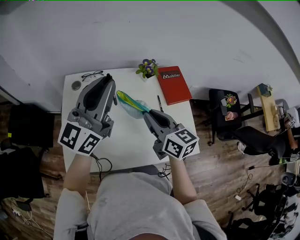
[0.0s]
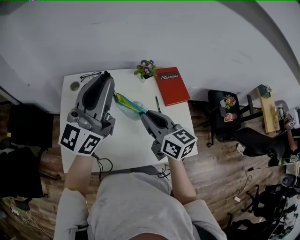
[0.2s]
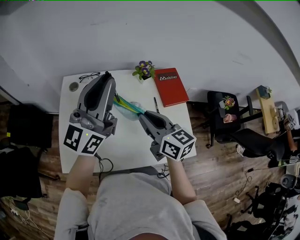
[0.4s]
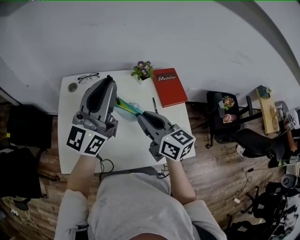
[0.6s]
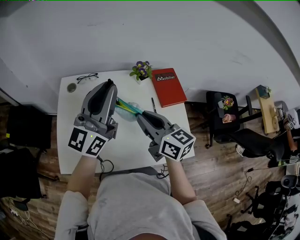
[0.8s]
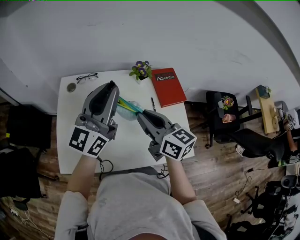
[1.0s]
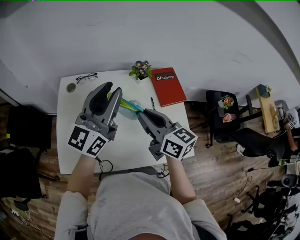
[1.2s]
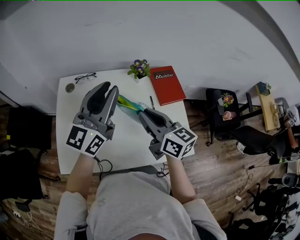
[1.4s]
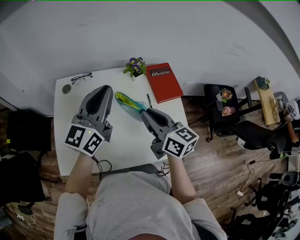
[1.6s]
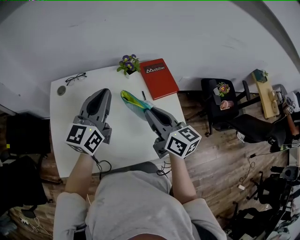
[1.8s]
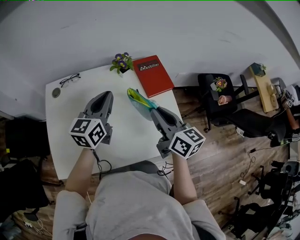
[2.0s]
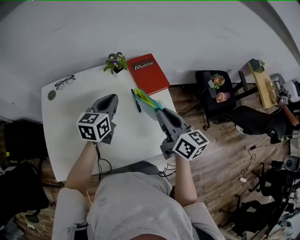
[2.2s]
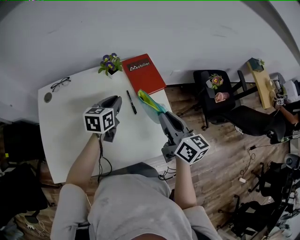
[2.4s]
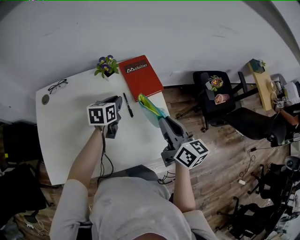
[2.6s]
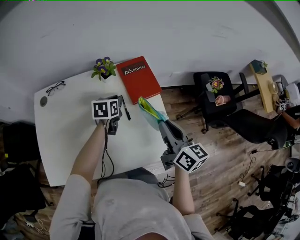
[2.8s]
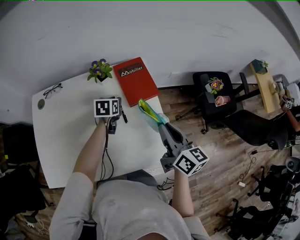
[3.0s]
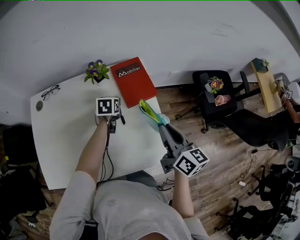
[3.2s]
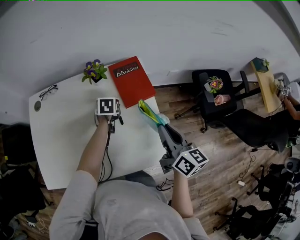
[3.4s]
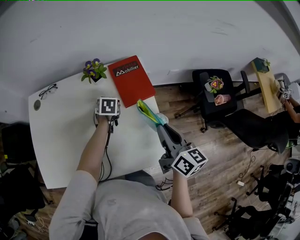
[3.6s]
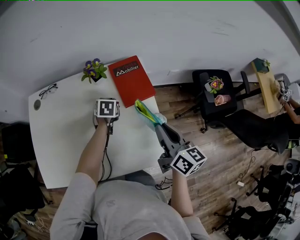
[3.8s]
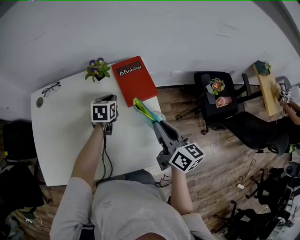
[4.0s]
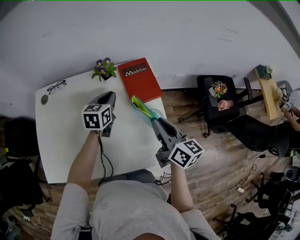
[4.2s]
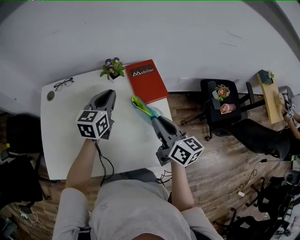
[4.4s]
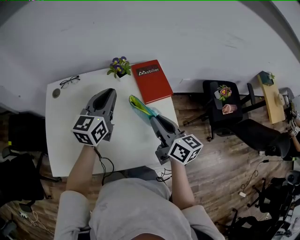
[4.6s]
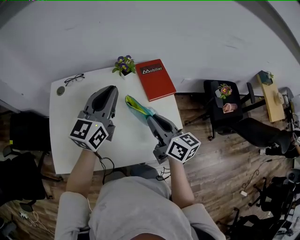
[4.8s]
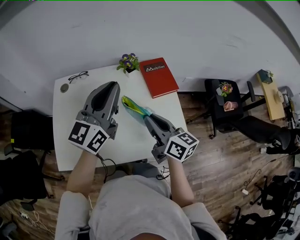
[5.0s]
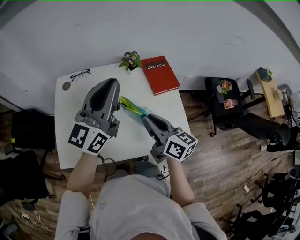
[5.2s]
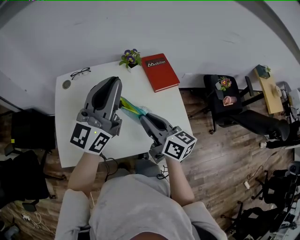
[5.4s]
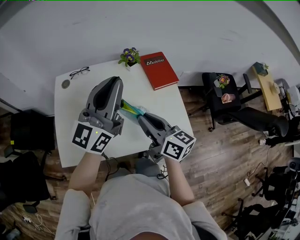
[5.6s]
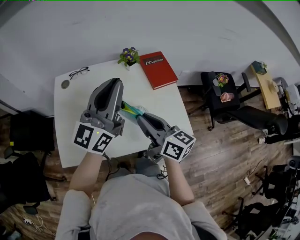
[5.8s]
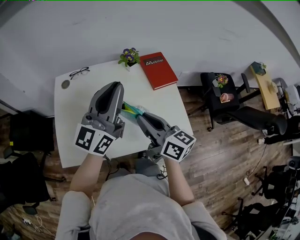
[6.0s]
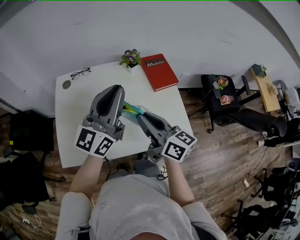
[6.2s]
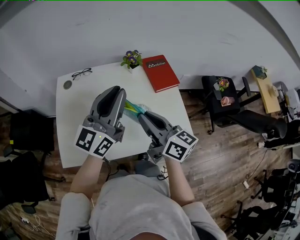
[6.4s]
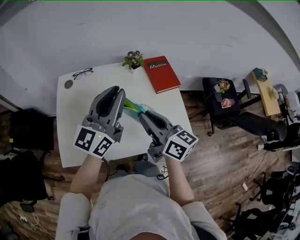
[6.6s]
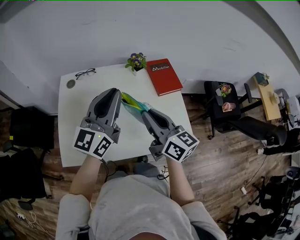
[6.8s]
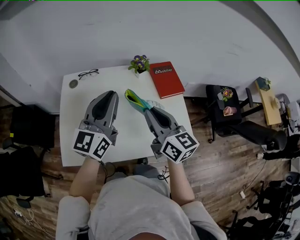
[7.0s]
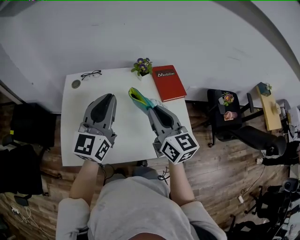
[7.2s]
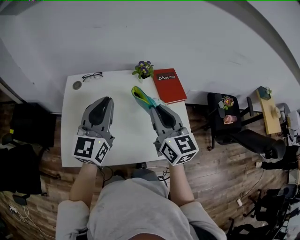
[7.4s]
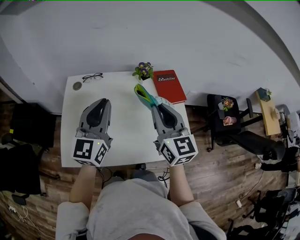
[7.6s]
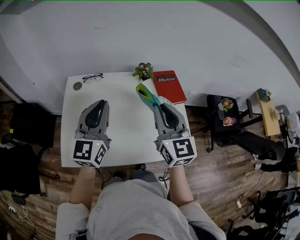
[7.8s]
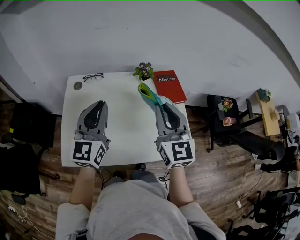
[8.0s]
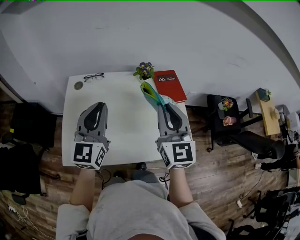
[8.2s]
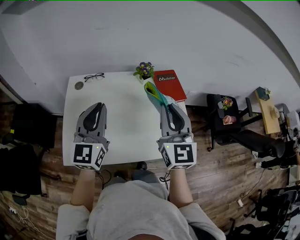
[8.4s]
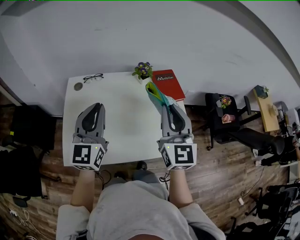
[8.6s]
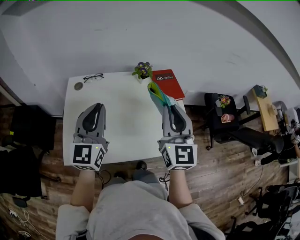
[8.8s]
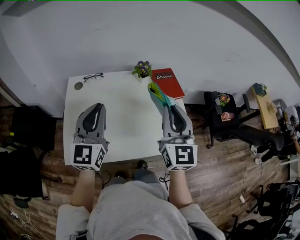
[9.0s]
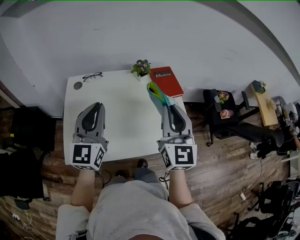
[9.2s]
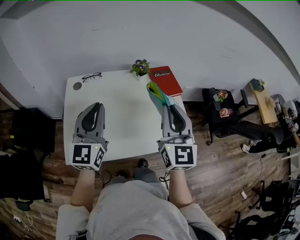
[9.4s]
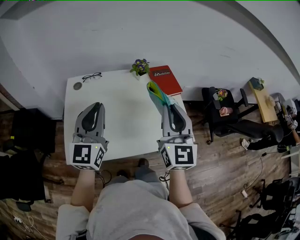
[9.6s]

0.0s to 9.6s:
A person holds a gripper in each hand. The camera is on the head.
0.0s to 1.6s: The left gripper travels downward and to the right by roughly 10 cm.
1.6s to 3.2s: The left gripper is displaced downward, to the right and forward by about 40 cm, and points its fingers some 60 degrees further downward, while the right gripper travels to the right by roughly 25 cm, and changes its angle by roughly 20 degrees.
3.2s to 4.8s: The right gripper heads to the left, covering roughly 15 cm. Meanwhile the left gripper is displaced upward and backward by approximately 35 cm, and tips its fingers upward by some 50 degrees.
4.8s to 6.4s: The left gripper heads backward and upward, covering approximately 10 cm, while the right gripper goes roughly 15 cm to the left, backward and upward.
6.4s to 8.0s: The right gripper moves upward, approximately 5 cm, and rotates around the line of its fingers by approximately 40 degrees, counterclockwise from behind. The left gripper shifts some 10 cm to the left, and changes its angle by approximately 30 degrees.
8.0s to 9.6s: The grippers both shift backward by roughly 5 cm.

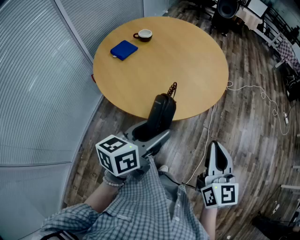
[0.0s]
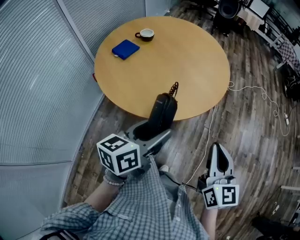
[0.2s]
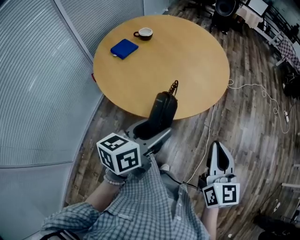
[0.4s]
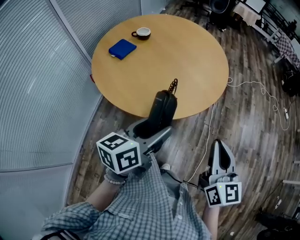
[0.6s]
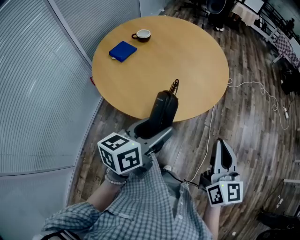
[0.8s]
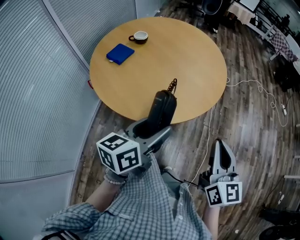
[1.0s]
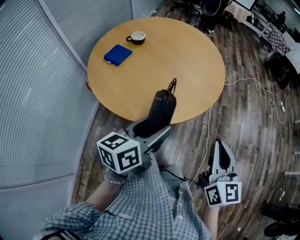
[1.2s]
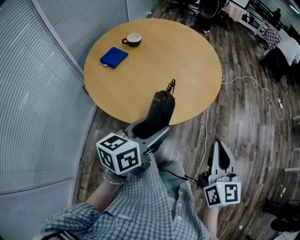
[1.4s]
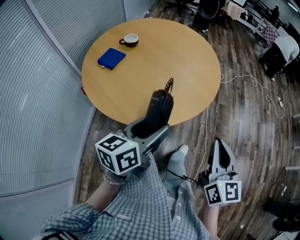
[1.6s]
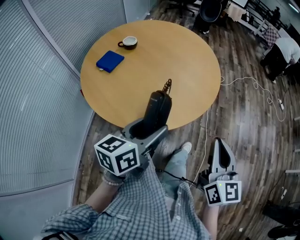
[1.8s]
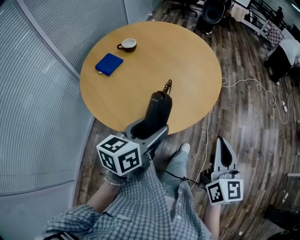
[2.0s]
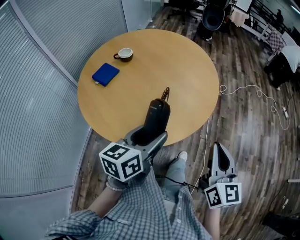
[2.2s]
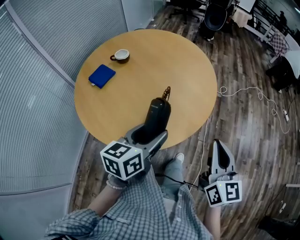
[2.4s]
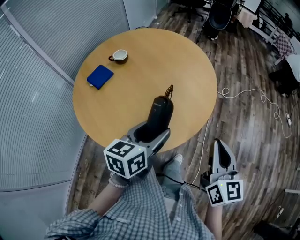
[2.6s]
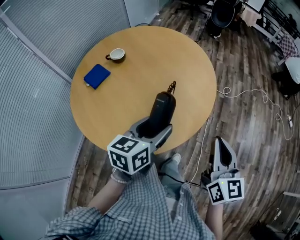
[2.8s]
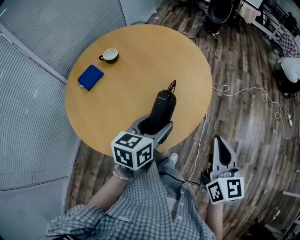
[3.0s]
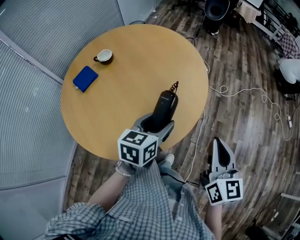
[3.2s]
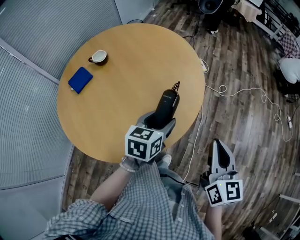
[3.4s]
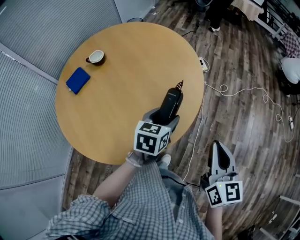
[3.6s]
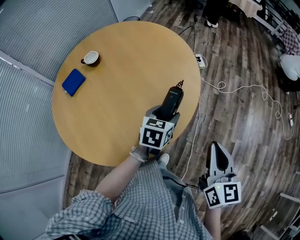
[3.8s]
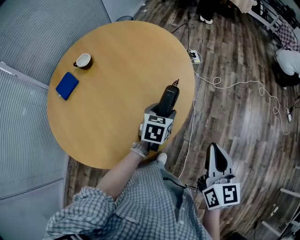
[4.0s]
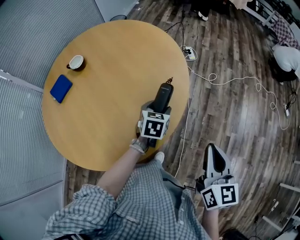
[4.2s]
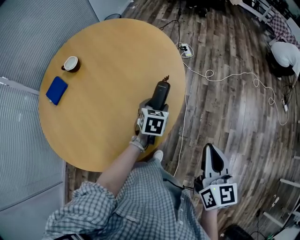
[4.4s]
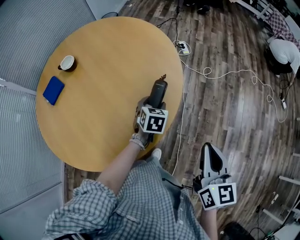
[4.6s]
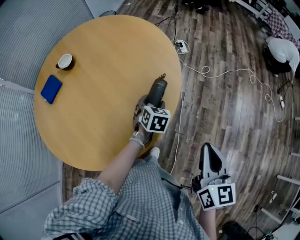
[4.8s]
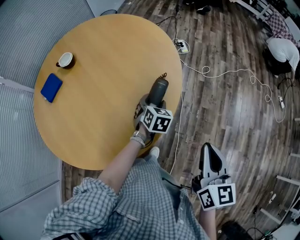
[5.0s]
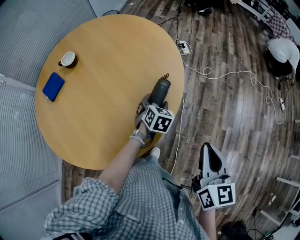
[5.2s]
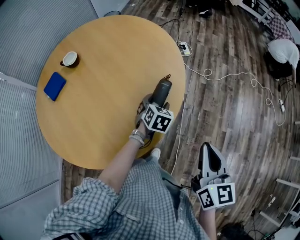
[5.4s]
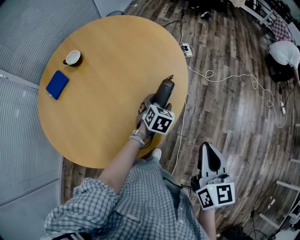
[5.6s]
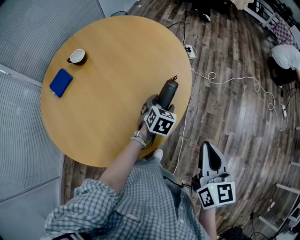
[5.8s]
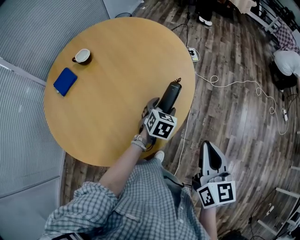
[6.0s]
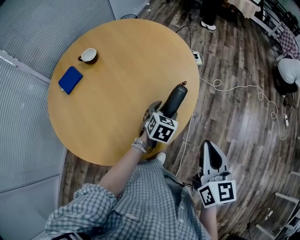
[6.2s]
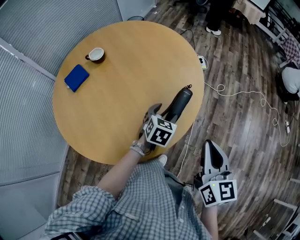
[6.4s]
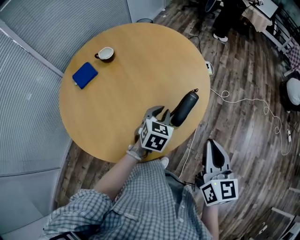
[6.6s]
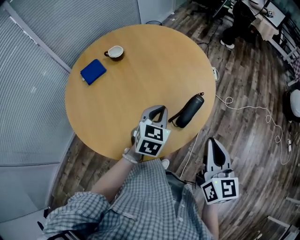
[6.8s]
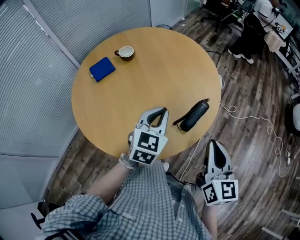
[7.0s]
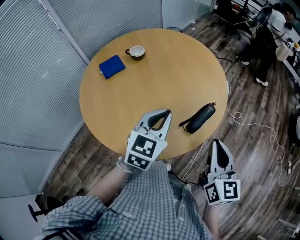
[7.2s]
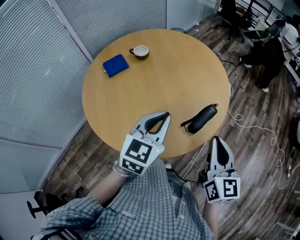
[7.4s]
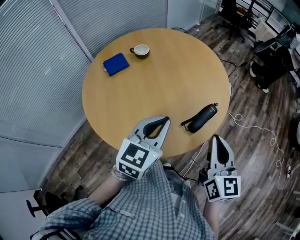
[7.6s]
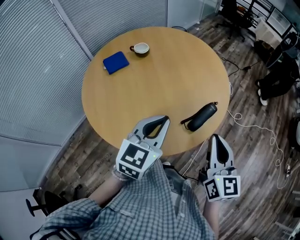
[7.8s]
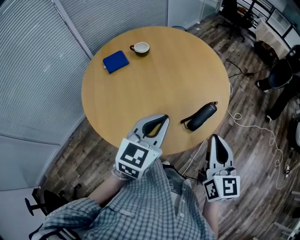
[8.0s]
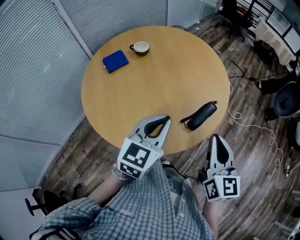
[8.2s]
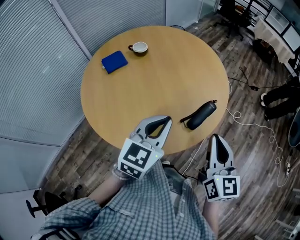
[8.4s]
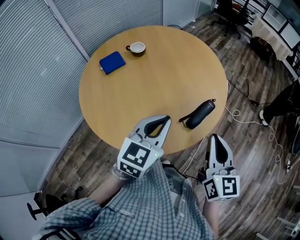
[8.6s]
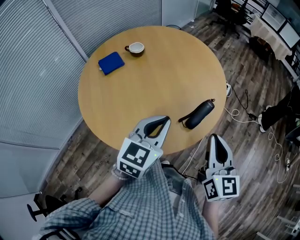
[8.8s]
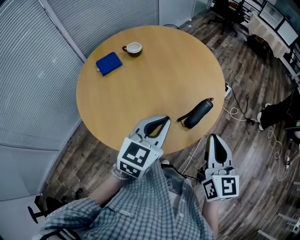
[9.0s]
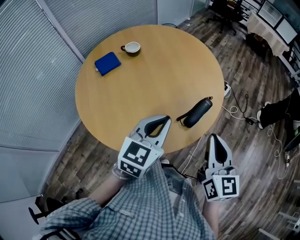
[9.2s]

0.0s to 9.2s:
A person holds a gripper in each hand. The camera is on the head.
0.0s to 1.6s: The grippers stay close to where they were, moving slightly.
1.6s to 3.0s: The two grippers go about 30 cm forward and to the right.
3.0s to 4.6s: The left gripper travels downward, forward and to the right by about 30 cm, and changes its angle by about 30 degrees. Meanwhile the right gripper is displaced to the right, forward and downward by about 15 cm.
4.6s to 6.2s: The left gripper moves about 5 cm. Meanwhile the right gripper heads to the left, covering roughly 5 cm.
6.2s to 7.6s: The left gripper heads upward, to the left and backward, covering some 30 cm, changes its angle by about 30 degrees, and closes up; the right gripper heads to the left, covering roughly 10 cm.
7.6s to 9.2s: The grippers stay close to where they were, moving slightly.

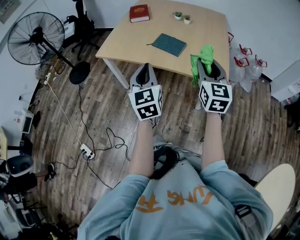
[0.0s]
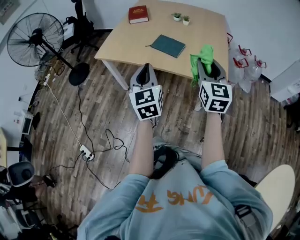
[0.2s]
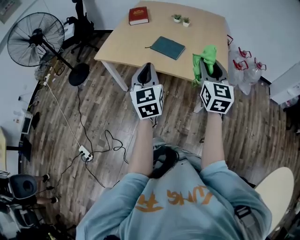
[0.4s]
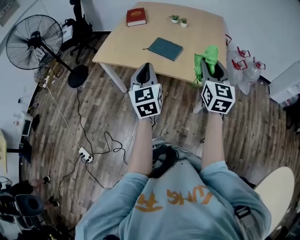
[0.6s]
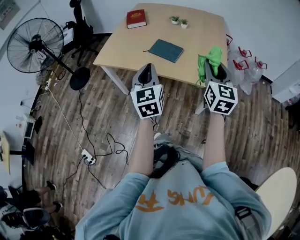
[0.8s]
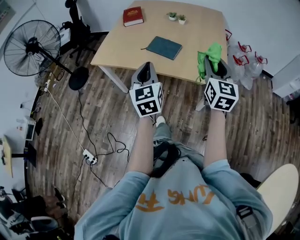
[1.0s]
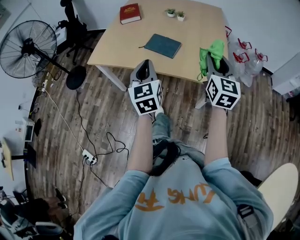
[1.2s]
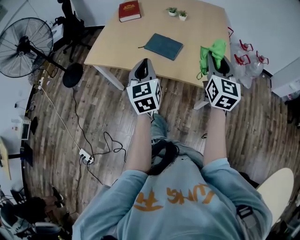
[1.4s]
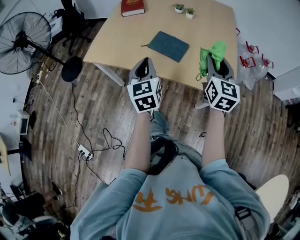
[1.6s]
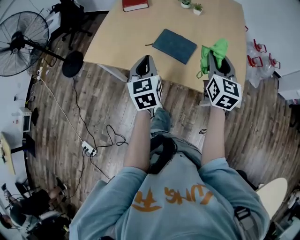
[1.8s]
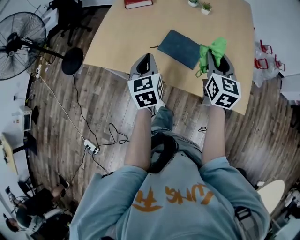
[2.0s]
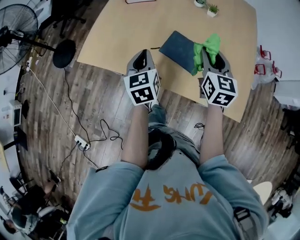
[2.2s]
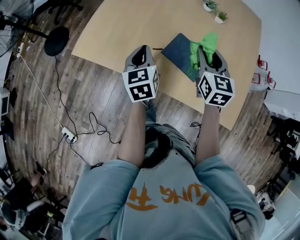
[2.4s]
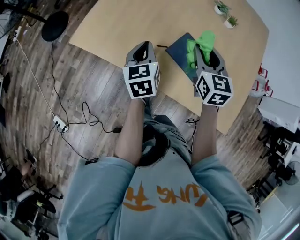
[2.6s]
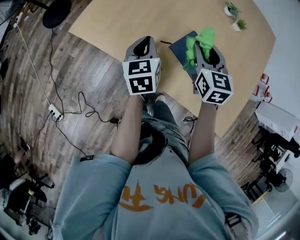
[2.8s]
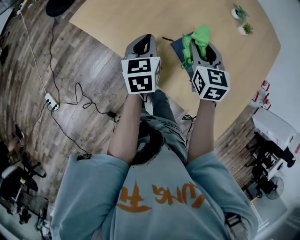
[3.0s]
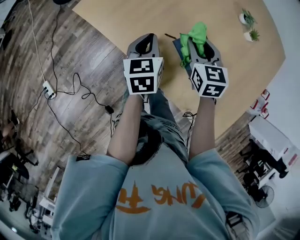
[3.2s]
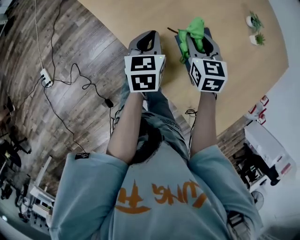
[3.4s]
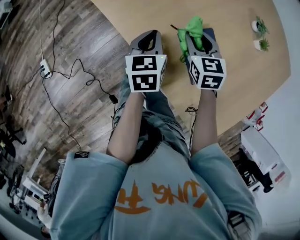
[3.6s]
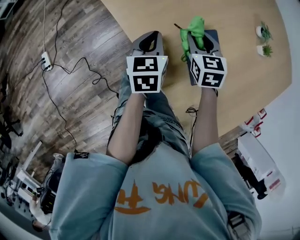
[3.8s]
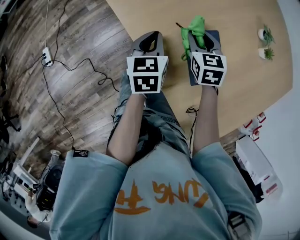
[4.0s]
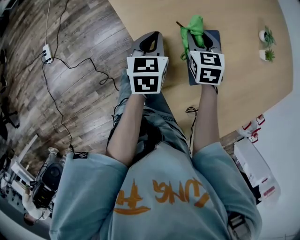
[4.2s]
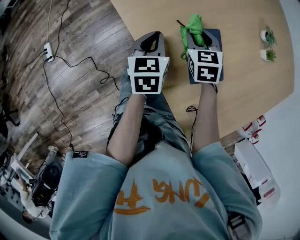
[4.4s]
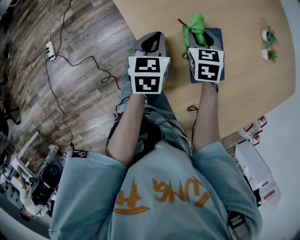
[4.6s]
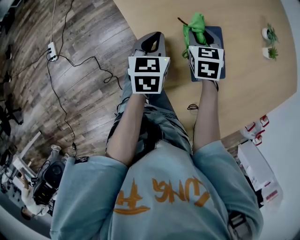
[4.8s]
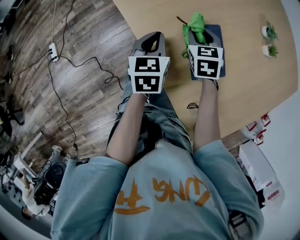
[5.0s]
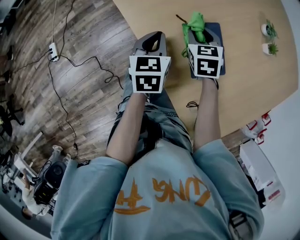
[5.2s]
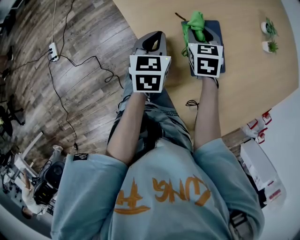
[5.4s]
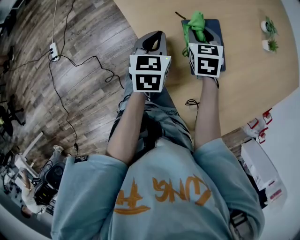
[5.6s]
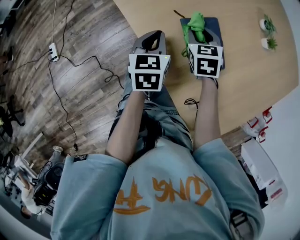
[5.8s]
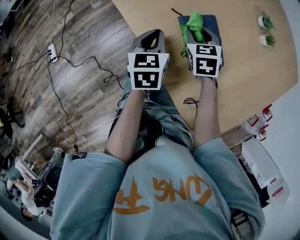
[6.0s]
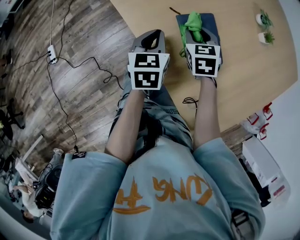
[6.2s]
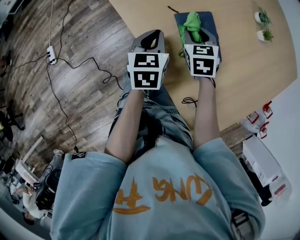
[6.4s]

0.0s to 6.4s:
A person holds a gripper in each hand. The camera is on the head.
0.0s to 1.6s: Both grippers travel together forward, approximately 20 cm.
1.6s to 3.2s: The left gripper goes about 30 cm forward and downward, and turns by about 30 degrees. Meanwhile the right gripper goes some 40 cm forward, to the left and downward, and swivels about 50 degrees.
3.2s to 4.8s: The right gripper heads downward, covering some 10 cm, and swivels approximately 20 degrees; the left gripper travels backward by roughly 5 cm.
4.8s to 6.4s: The right gripper travels backward by approximately 5 cm. Meanwhile the left gripper changes place by roughly 5 cm.
